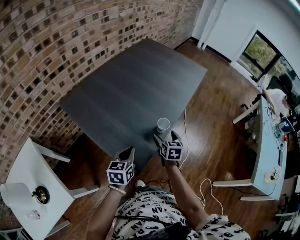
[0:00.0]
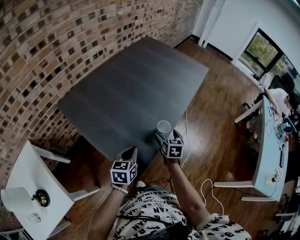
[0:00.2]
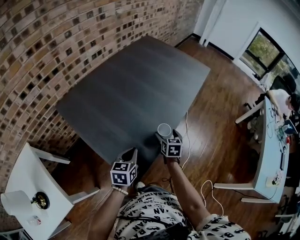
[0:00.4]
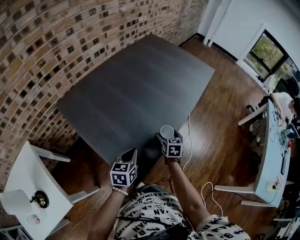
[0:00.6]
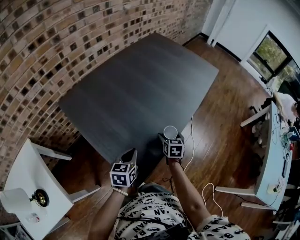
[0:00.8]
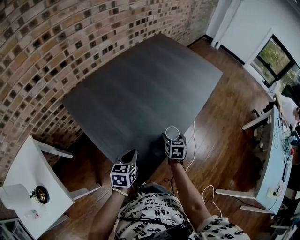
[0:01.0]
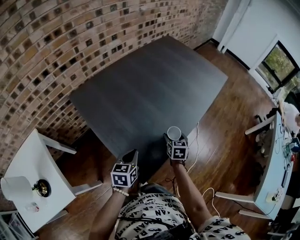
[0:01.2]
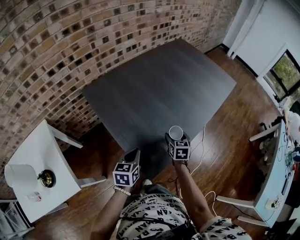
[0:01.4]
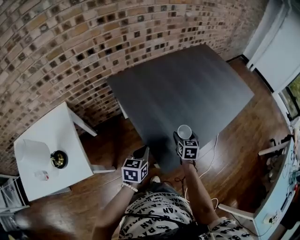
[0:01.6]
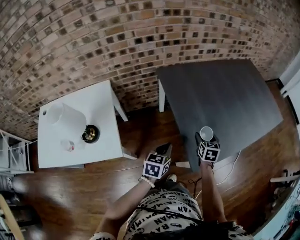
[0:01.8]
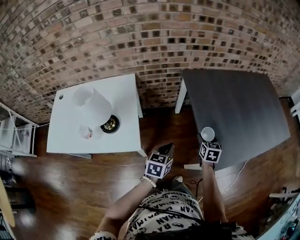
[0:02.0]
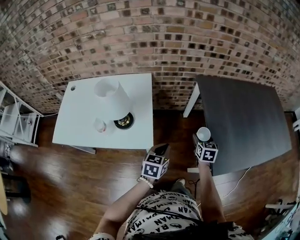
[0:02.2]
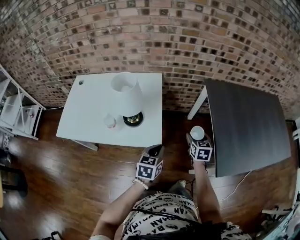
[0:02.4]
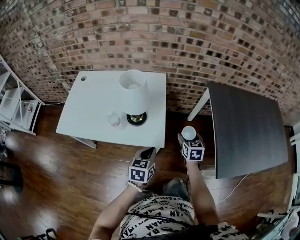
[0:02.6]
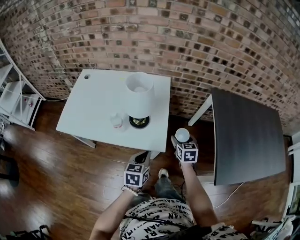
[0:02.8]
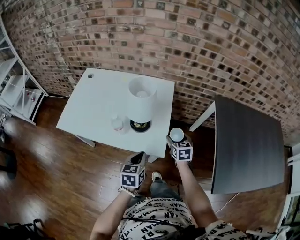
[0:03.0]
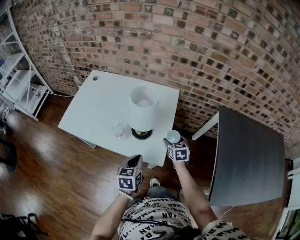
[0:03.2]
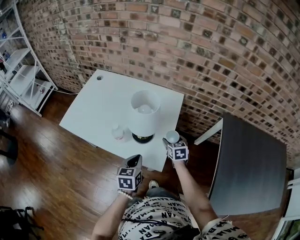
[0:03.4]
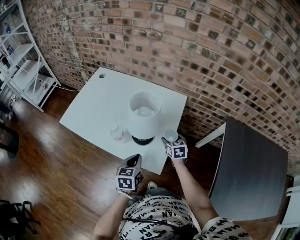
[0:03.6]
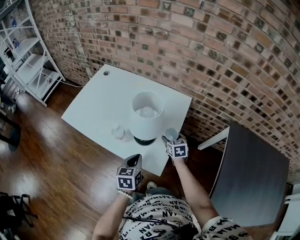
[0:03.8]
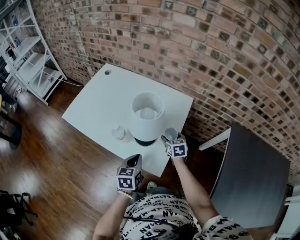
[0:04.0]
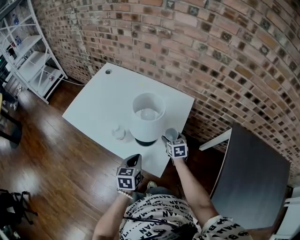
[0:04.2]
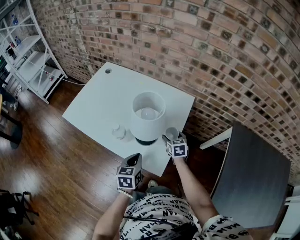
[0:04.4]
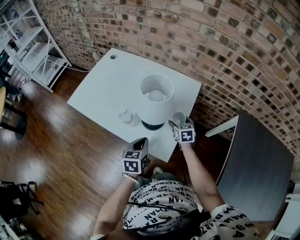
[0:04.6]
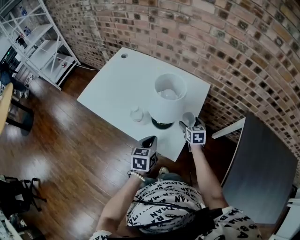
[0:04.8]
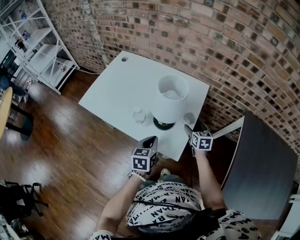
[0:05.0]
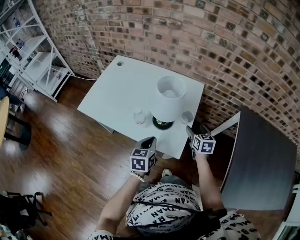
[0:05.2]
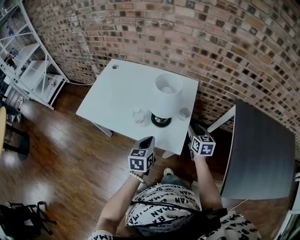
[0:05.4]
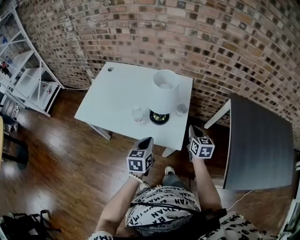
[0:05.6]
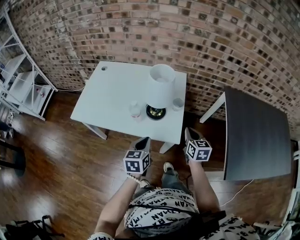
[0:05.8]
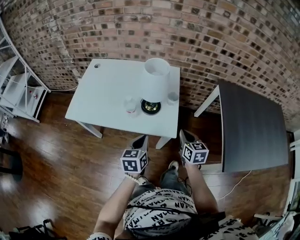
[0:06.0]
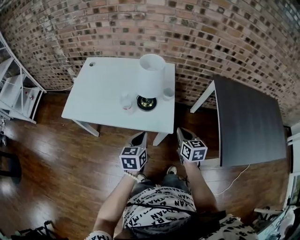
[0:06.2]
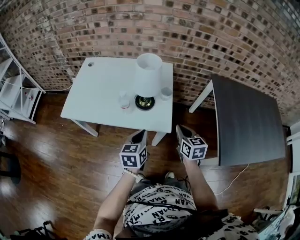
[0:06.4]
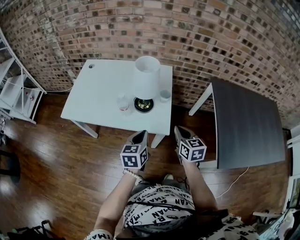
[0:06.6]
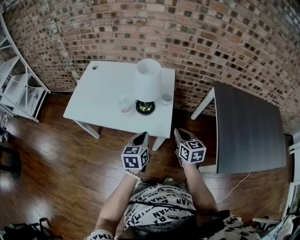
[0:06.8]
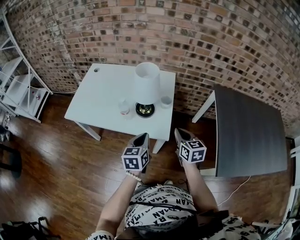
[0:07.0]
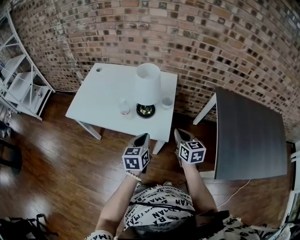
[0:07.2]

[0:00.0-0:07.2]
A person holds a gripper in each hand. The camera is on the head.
0:00.0 to 0:01.4: Both grippers travel together to the left, approximately 5 cm.
0:01.4 to 0:02.8: Both grippers are carried some 60 cm. The right gripper rotates approximately 50 degrees. The left gripper rotates approximately 40 degrees.
0:02.8 to 0:04.4: The right gripper ends up roughly 20 cm from where it was, and swivels roughly 30 degrees. Meanwhile the left gripper moves some 10 cm, and changes its angle by about 30 degrees.
0:04.4 to 0:05.8: The right gripper goes about 25 cm backward and upward, changes its angle by approximately 30 degrees, and closes, while the left gripper heads backward, upward and to the left, covering about 10 cm.
0:05.8 to 0:07.2: The left gripper shifts about 5 cm to the right. Meanwhile the right gripper moves about 5 cm.

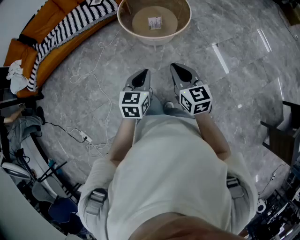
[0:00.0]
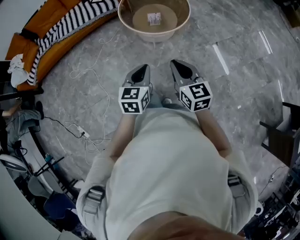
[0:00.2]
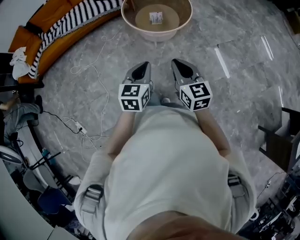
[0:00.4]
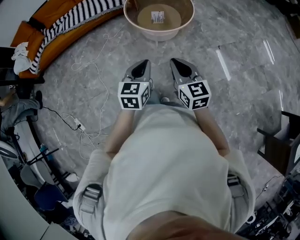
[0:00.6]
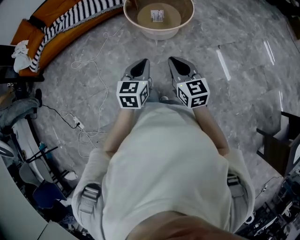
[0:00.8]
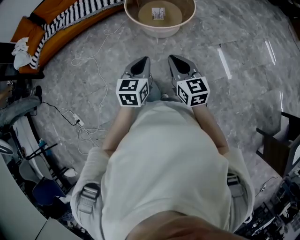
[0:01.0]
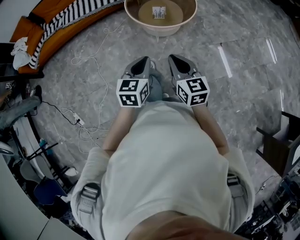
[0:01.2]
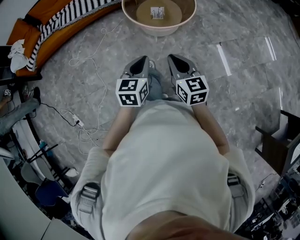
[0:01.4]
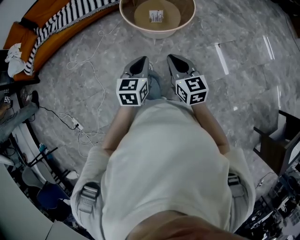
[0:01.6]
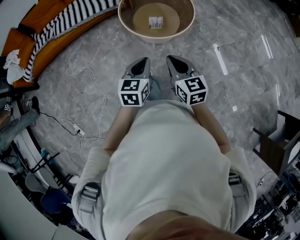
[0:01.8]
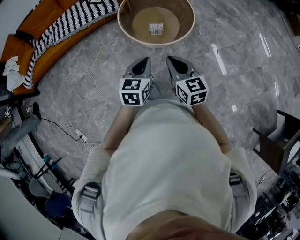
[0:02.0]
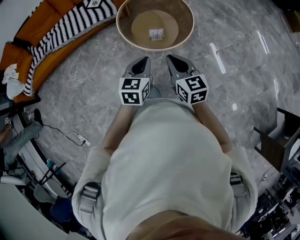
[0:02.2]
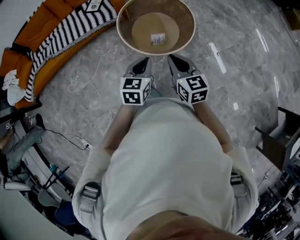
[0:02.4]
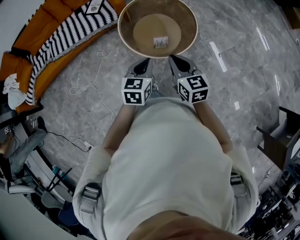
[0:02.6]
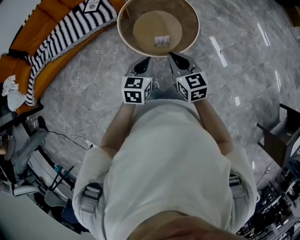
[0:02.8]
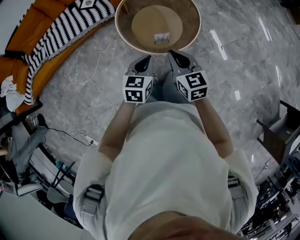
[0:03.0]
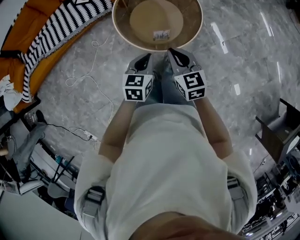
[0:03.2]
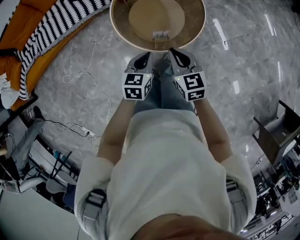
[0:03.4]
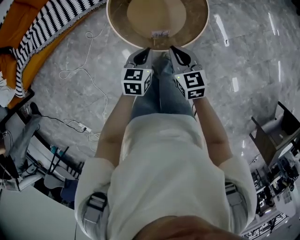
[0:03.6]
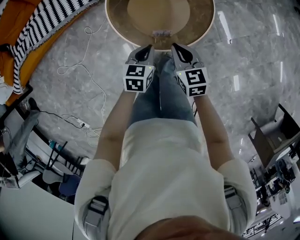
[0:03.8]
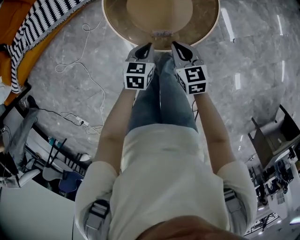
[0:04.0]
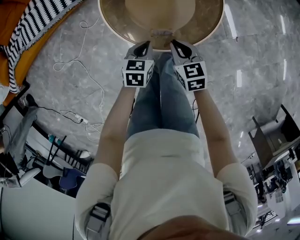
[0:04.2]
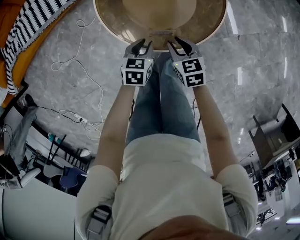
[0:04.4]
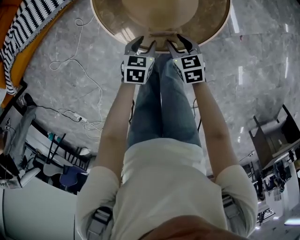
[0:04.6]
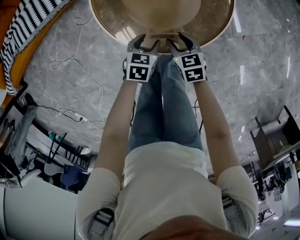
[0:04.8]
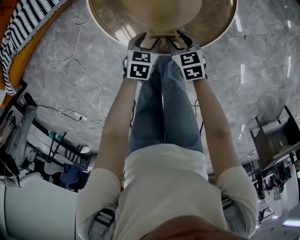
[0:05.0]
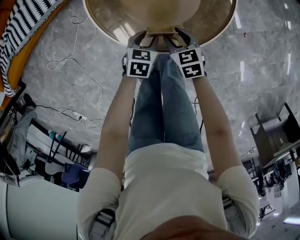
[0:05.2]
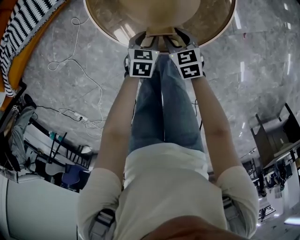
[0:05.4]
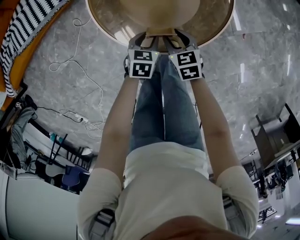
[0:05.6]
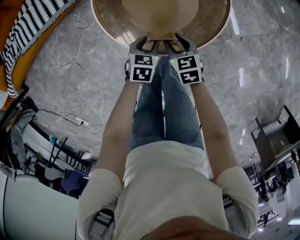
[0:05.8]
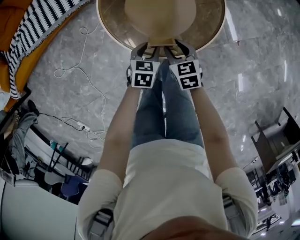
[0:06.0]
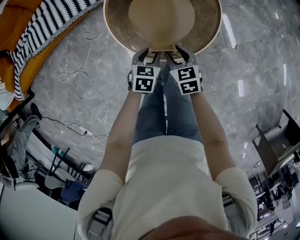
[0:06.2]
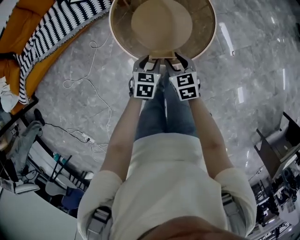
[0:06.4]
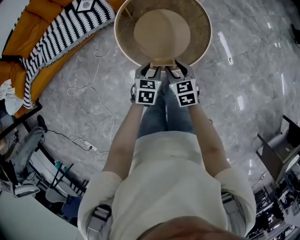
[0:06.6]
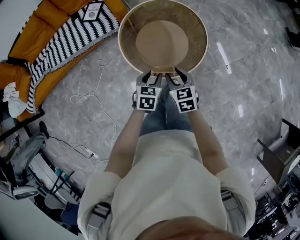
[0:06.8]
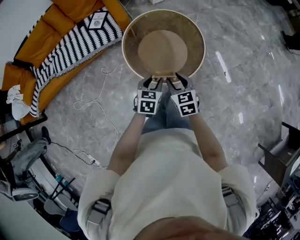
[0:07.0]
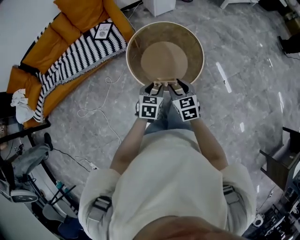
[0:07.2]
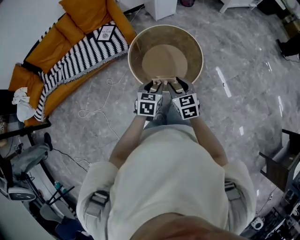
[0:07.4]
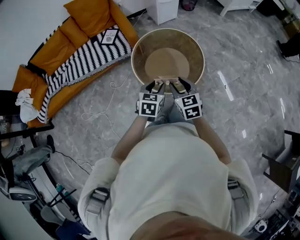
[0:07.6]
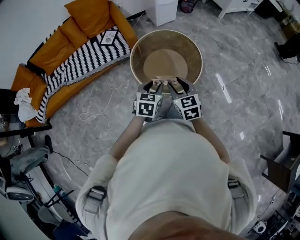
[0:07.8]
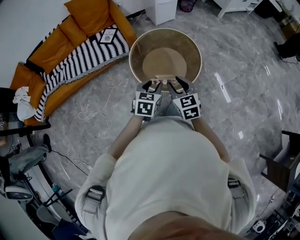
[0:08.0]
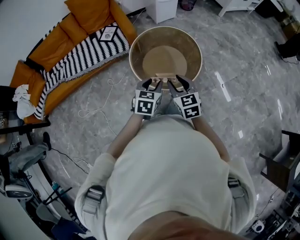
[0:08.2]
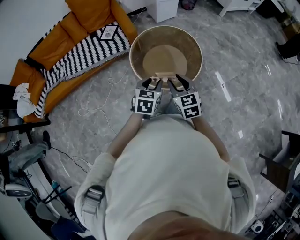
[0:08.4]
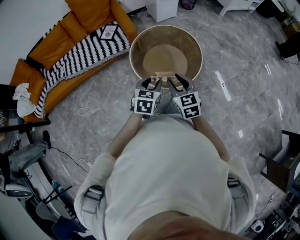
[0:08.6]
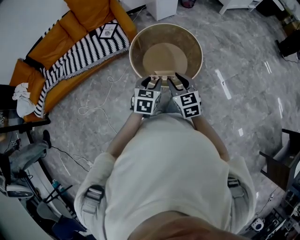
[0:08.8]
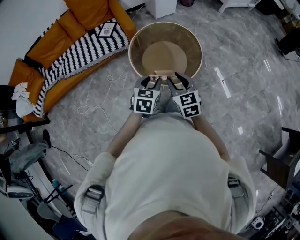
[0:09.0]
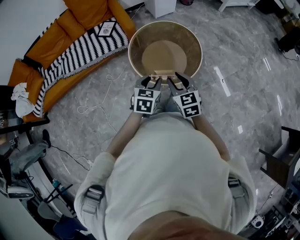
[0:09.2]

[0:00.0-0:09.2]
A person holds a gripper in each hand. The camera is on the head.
0:00.0 to 0:01.6: The left gripper moves approximately 5 cm backward and comes back. Meanwhile the right gripper travels backward and back again, about 5 cm each way.
0:01.6 to 0:03.0: The two grippers go about 25 cm forward.
0:03.0 to 0:04.6: Both grippers move downward, roughly 30 cm. The right gripper turns by some 30 degrees, and opens its fingers; the left gripper swivels some 20 degrees, and opens.
0:04.6 to 0:06.2: Both grippers move upward, roughly 5 cm.
0:06.2 to 0:07.6: Both grippers travel together upward, roughly 25 cm.
0:07.6 to 0:09.2: There are only small adjustments of the grippers.

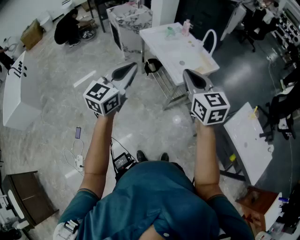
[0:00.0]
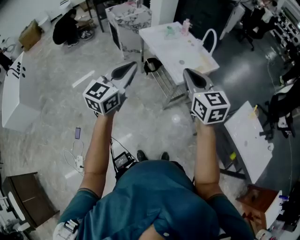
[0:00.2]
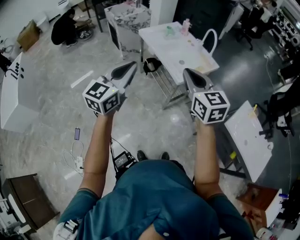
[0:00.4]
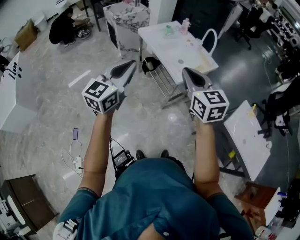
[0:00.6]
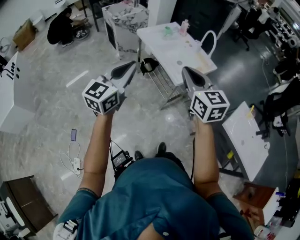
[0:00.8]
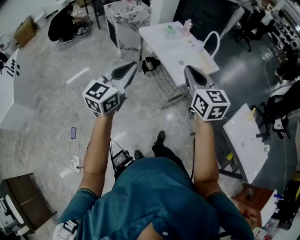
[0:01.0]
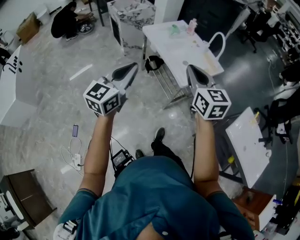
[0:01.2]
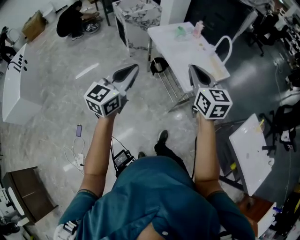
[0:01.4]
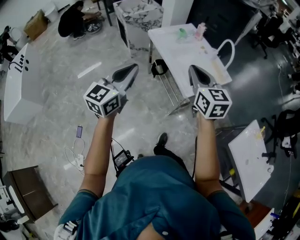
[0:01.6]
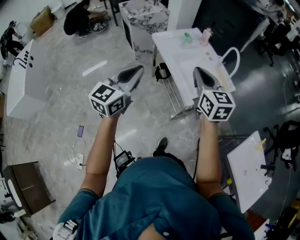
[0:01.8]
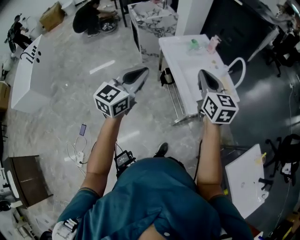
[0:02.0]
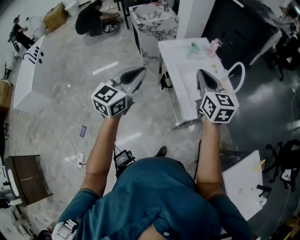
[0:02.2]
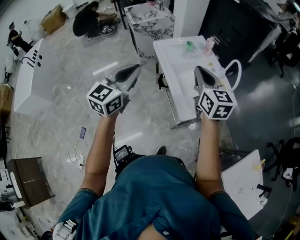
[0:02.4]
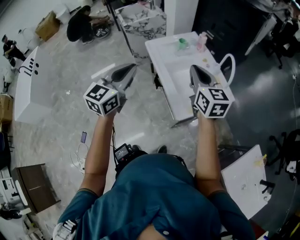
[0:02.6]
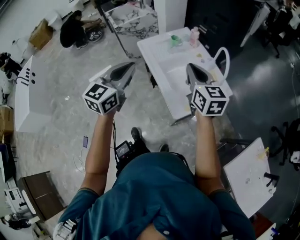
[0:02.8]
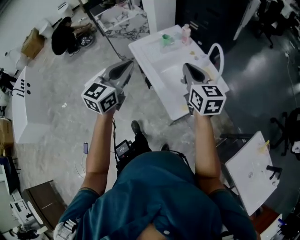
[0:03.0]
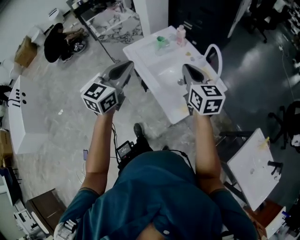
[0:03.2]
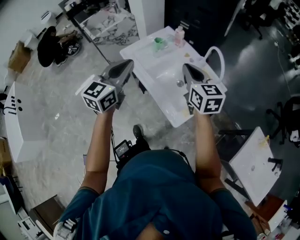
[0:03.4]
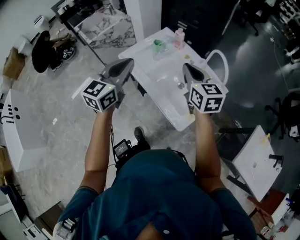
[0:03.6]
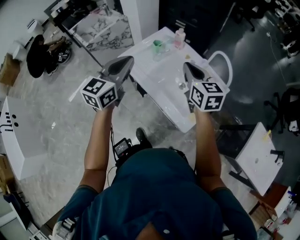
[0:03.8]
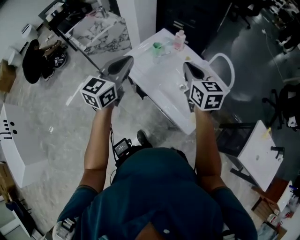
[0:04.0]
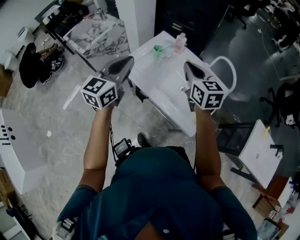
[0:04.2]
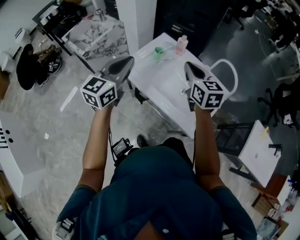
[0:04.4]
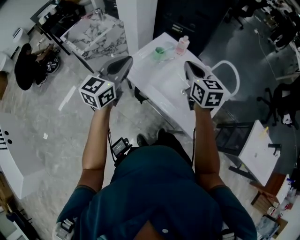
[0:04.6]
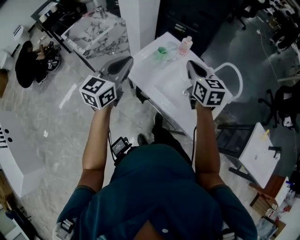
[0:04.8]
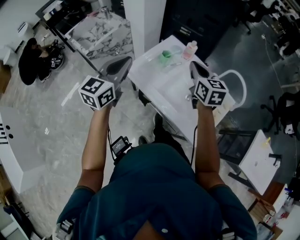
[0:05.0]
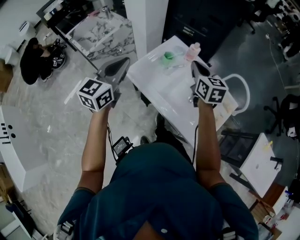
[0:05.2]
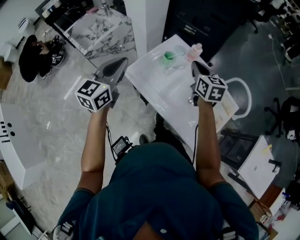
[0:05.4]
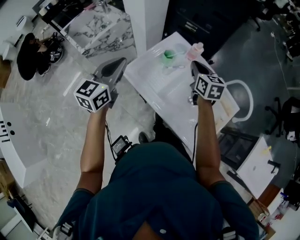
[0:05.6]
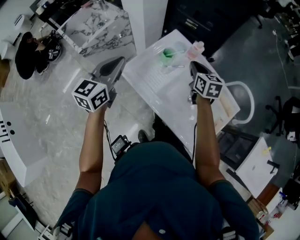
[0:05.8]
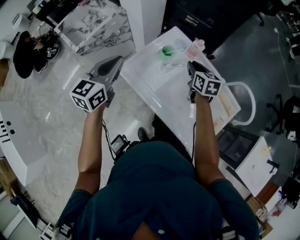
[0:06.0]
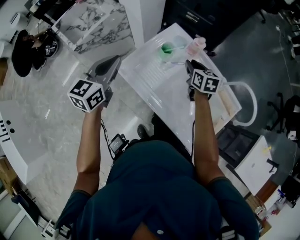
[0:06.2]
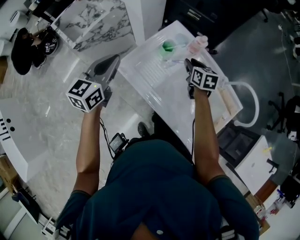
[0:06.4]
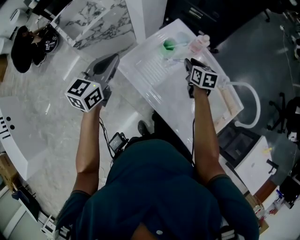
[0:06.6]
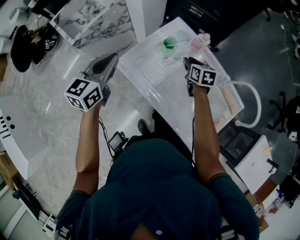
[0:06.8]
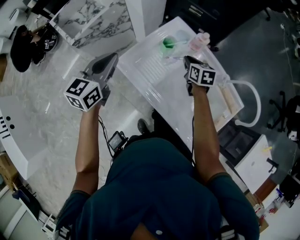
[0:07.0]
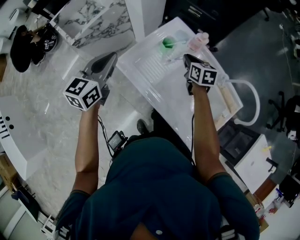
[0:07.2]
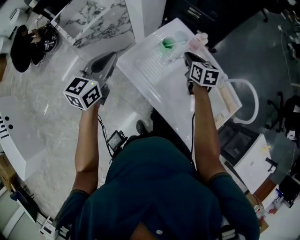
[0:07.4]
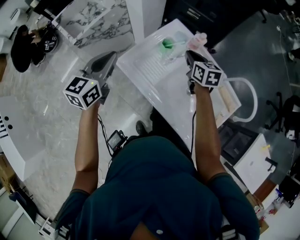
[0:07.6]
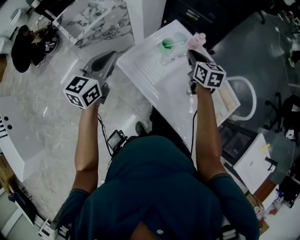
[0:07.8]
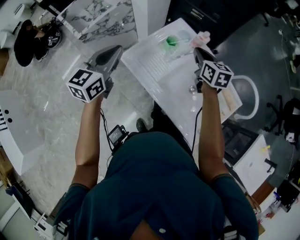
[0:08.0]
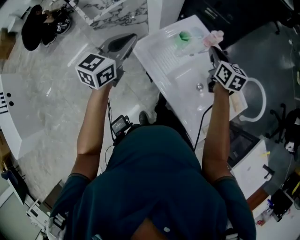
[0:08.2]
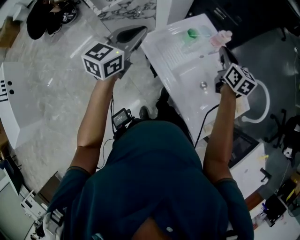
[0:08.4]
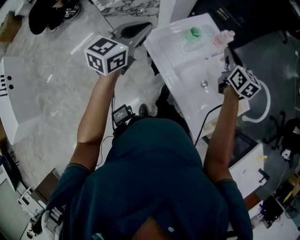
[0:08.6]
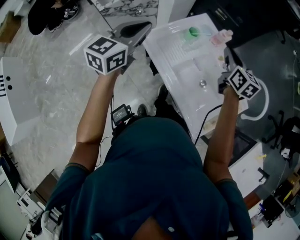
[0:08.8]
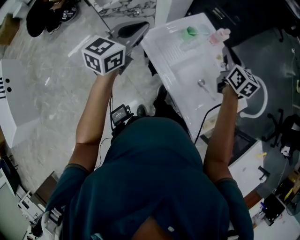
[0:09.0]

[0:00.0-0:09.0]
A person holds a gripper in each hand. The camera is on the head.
0:00.0 to 0:01.6: The right gripper is displaced forward by some 15 cm; the left gripper moves forward and to the left, roughly 15 cm.
0:01.6 to 0:03.0: Both grippers travel together forward and to the right, about 25 cm.
0:03.0 to 0:04.4: Both grippers travel together forward and to the left, about 20 cm. The right gripper turns by some 20 degrees.
0:04.4 to 0:06.0: The left gripper travels forward, downward and to the left by about 20 cm, while the right gripper moves forward and downward, about 25 cm.
0:06.0 to 0:07.6: The right gripper goes downward and returns, approximately 10 cm each way.
0:07.6 to 0:09.0: The left gripper changes place by some 5 cm; the right gripper goes roughly 10 cm upward and backward.
